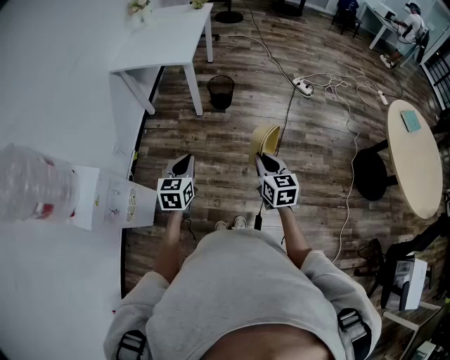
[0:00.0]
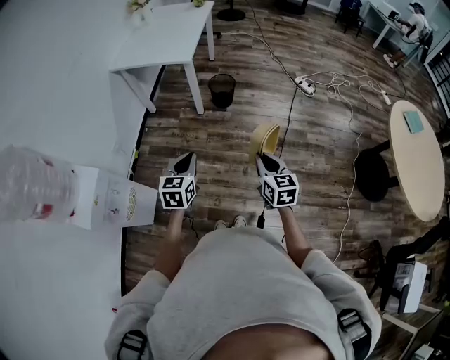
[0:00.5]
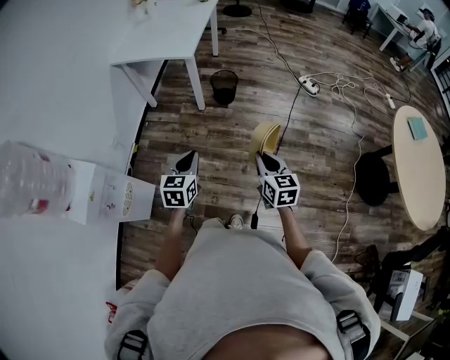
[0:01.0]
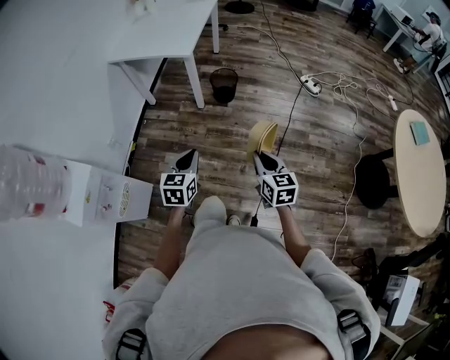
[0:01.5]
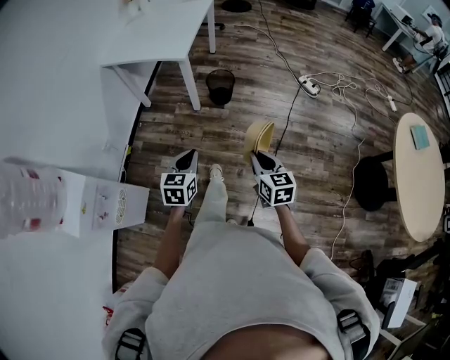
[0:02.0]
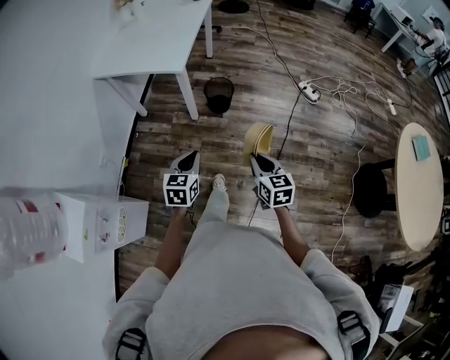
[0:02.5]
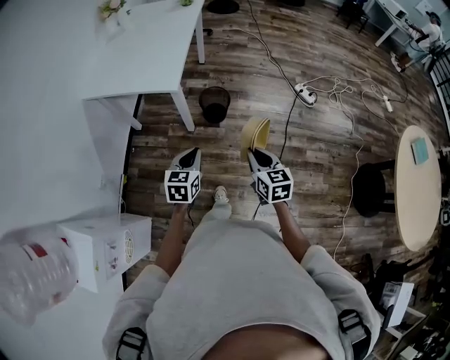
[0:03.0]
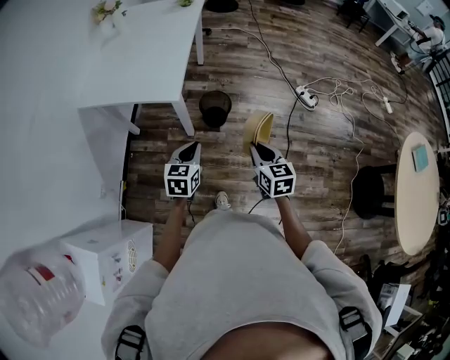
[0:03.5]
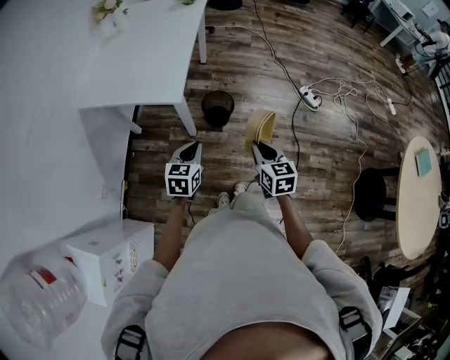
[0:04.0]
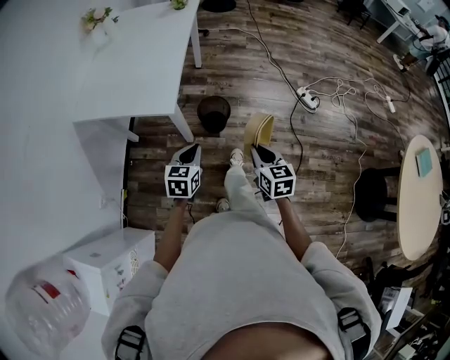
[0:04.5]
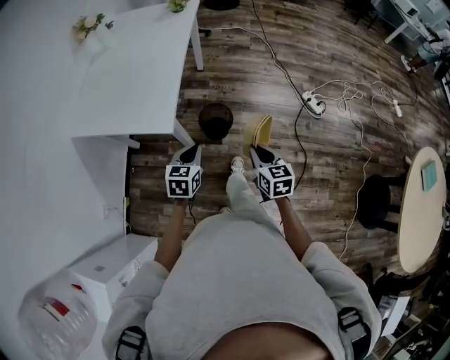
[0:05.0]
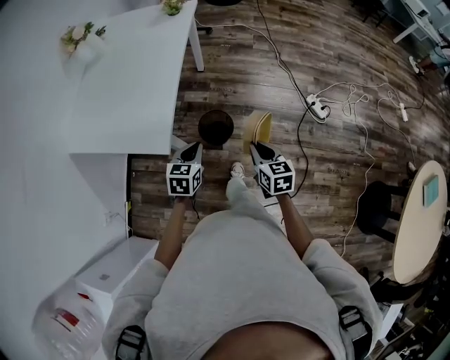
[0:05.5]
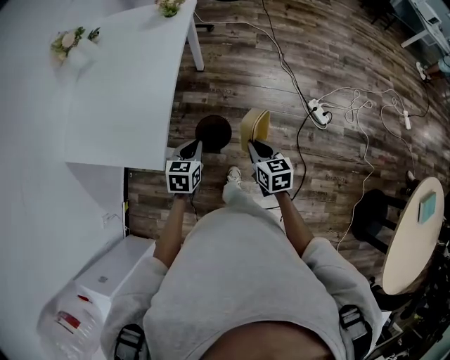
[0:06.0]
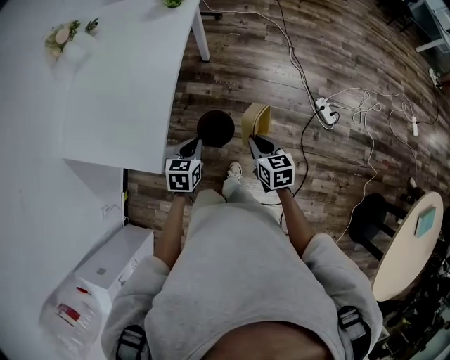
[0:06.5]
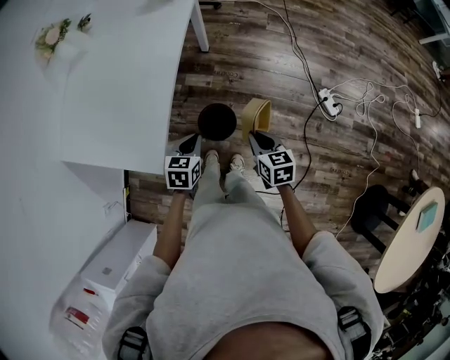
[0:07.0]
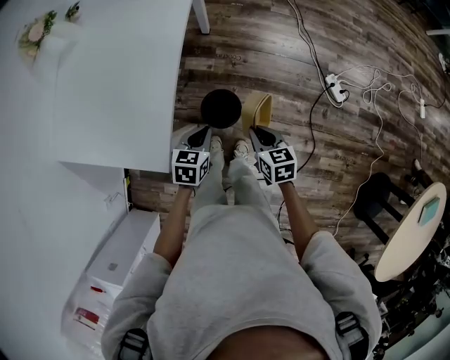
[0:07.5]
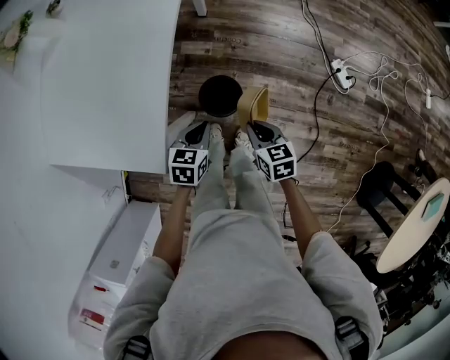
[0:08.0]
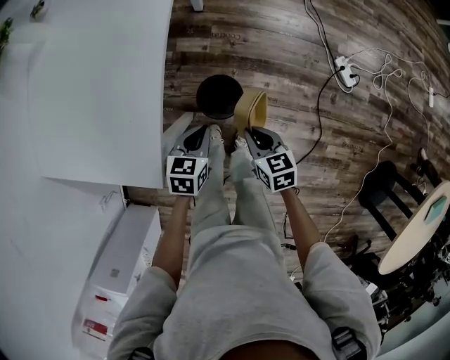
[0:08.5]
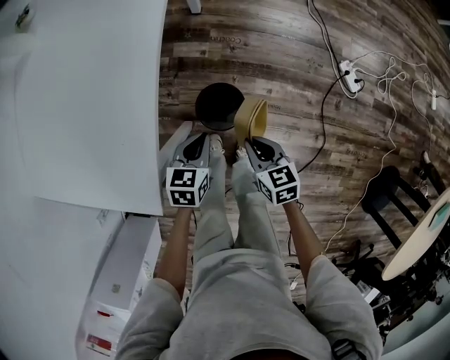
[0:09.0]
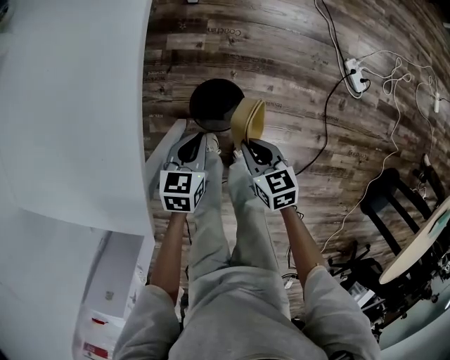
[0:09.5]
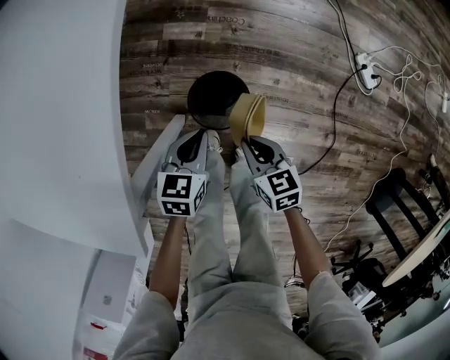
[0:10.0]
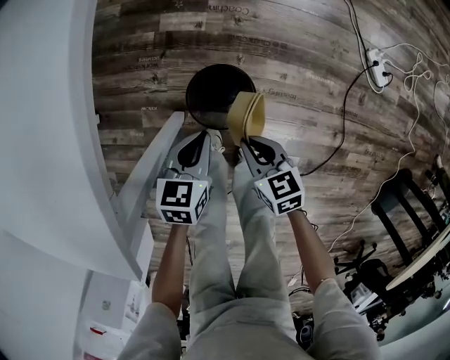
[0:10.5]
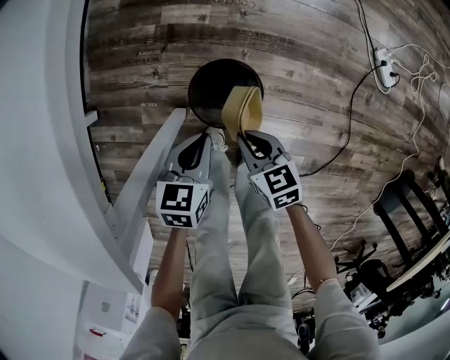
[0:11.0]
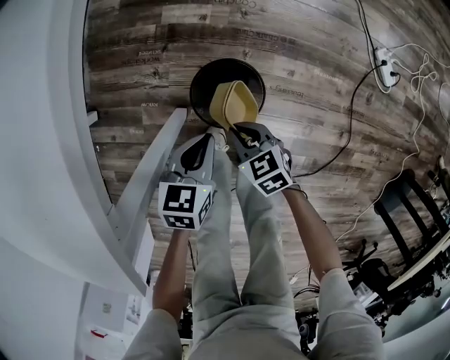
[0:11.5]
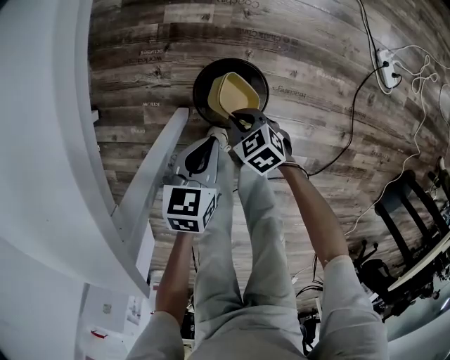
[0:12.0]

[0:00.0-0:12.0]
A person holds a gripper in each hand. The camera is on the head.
0:00.0 to 0:02.0: The left gripper travels forward and to the right by some 10 cm. Meanwhile the right gripper moves forward, about 10 cm.
0:02.0 to 0:04.0: The grippers both shift forward by about 35 cm.
0:04.0 to 0:06.0: Both grippers move forward, some 30 cm.
0:06.0 to 0:08.0: The right gripper goes some 15 cm downward, to the left and forward; the left gripper is displaced downward and forward by roughly 10 cm.
0:08.0 to 0:10.0: Both grippers travel together downward, approximately 20 cm.
0:10.0 to 0:12.0: The right gripper heads downward and to the left, covering some 20 cm, and changes its angle by roughly 30 degrees. The left gripper shifts approximately 5 cm downward.

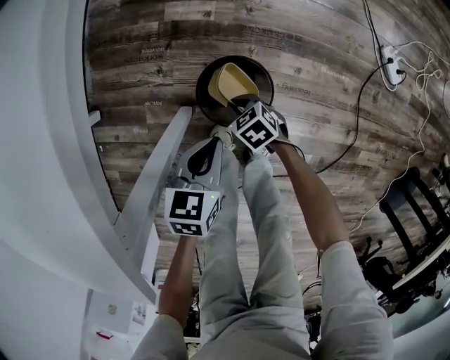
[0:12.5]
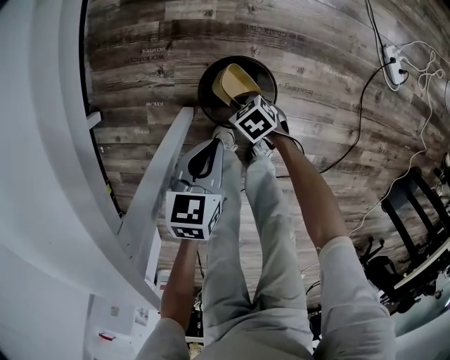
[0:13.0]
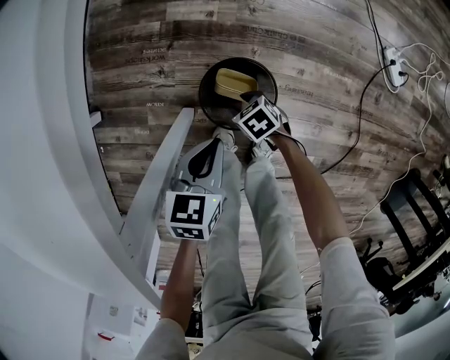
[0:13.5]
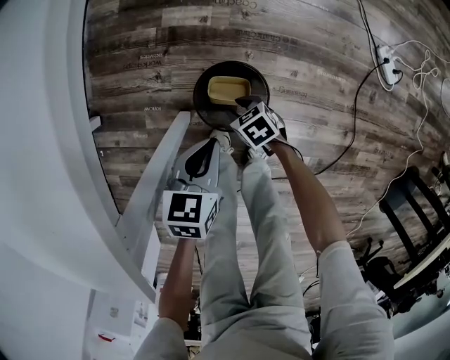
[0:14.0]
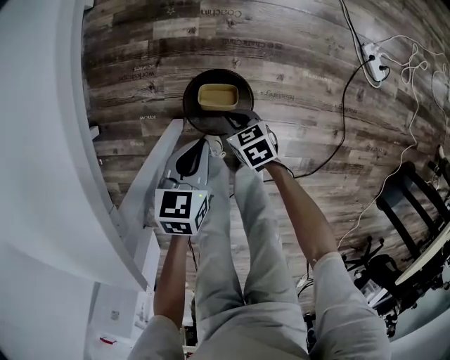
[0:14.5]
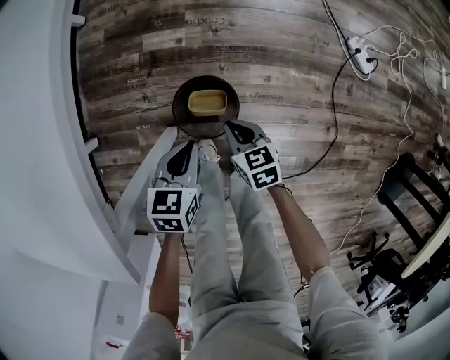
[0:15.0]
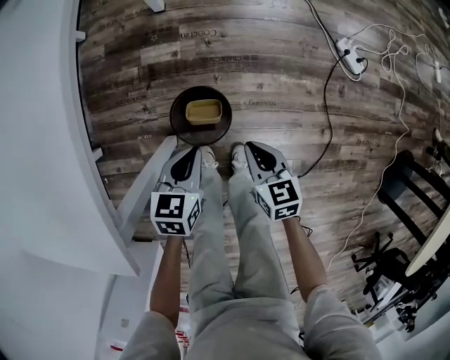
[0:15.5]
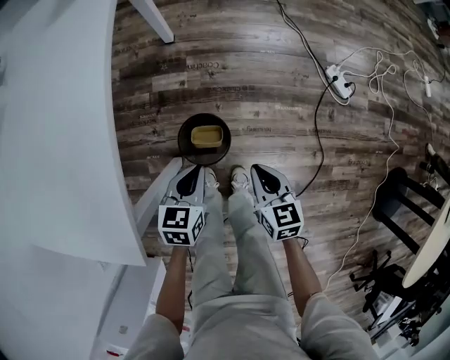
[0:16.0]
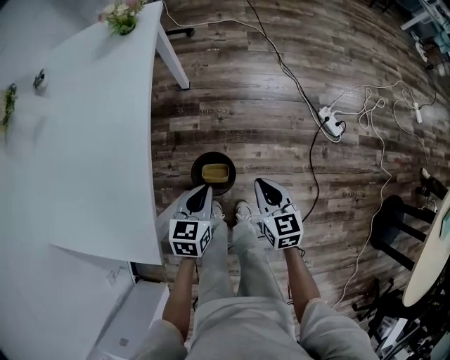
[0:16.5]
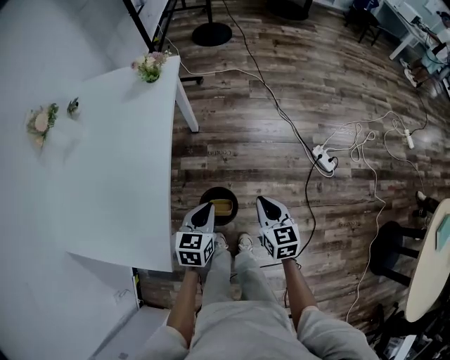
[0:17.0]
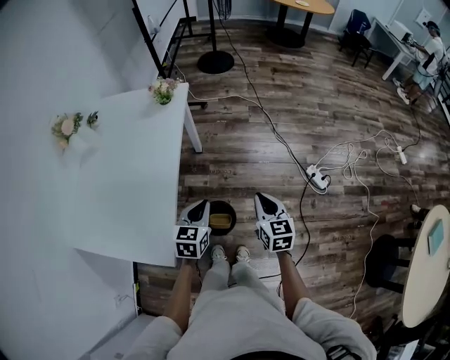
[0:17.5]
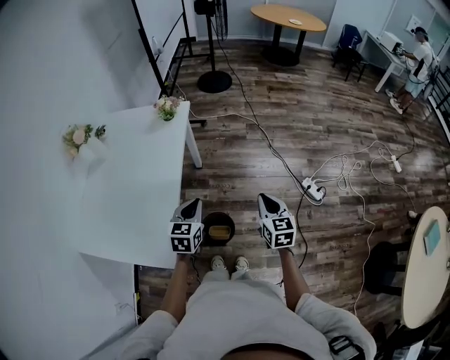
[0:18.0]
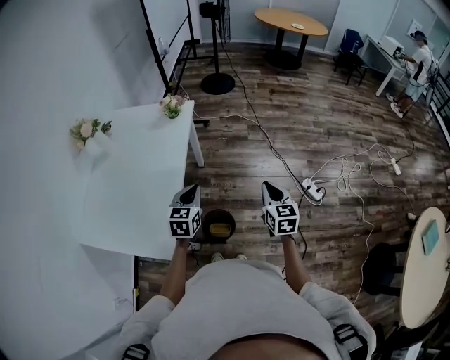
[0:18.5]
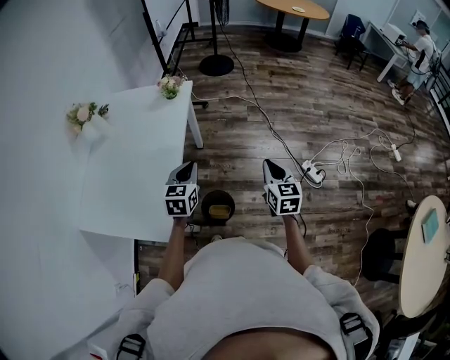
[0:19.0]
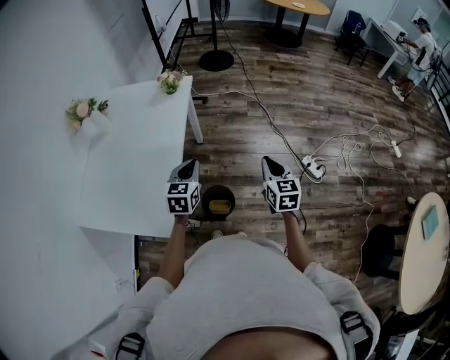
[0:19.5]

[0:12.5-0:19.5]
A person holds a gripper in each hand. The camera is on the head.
0:12.5 to 0:14.5: The right gripper travels upward by some 5 cm, changes its angle by about 20 degrees, and opens, then closes again.
0:14.5 to 0:16.0: The left gripper shifts some 10 cm upward and to the right. The right gripper is displaced upward and to the right by about 30 cm, and turns by roughly 30 degrees.
0:16.0 to 0:17.5: Both grippers move upward, some 30 cm.
0:17.5 to 0:19.5: Both grippers move upward, approximately 10 cm.

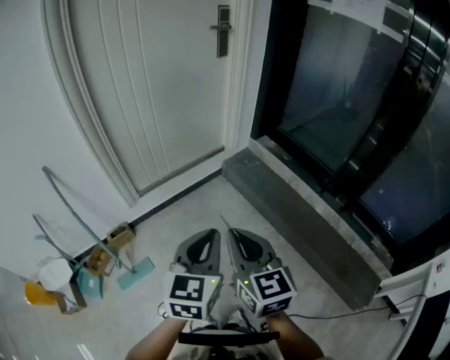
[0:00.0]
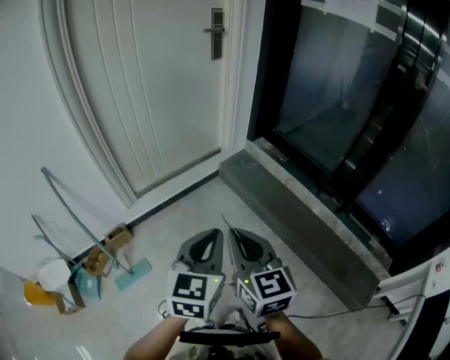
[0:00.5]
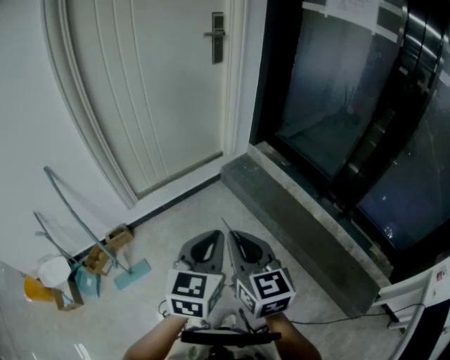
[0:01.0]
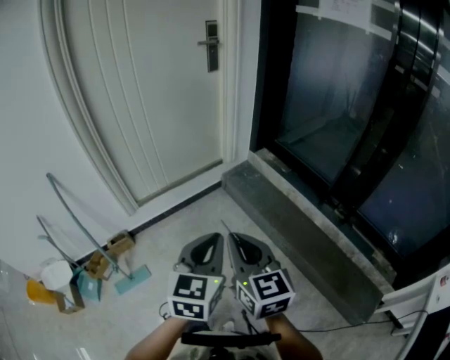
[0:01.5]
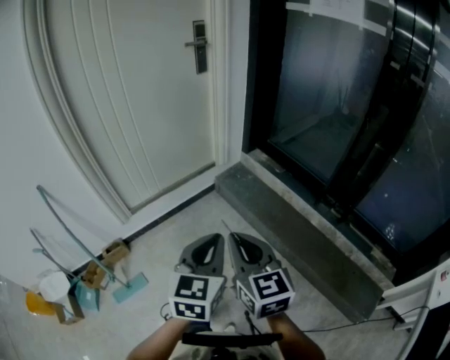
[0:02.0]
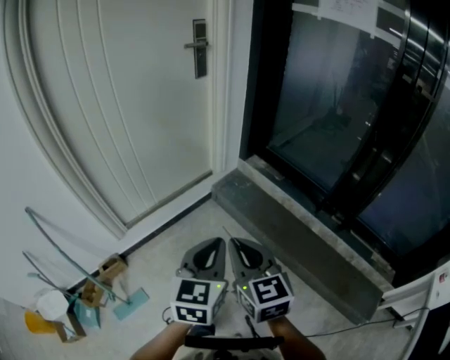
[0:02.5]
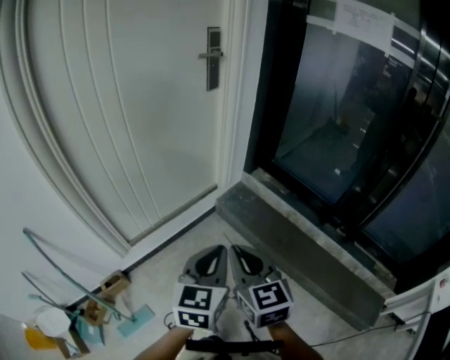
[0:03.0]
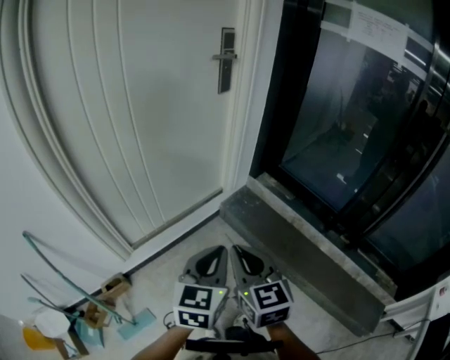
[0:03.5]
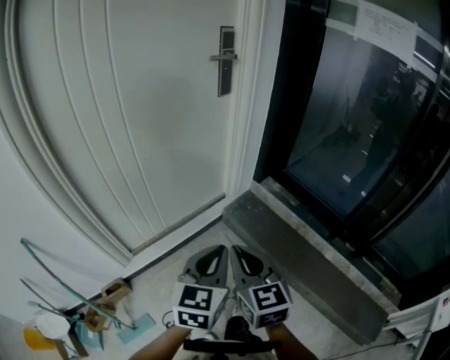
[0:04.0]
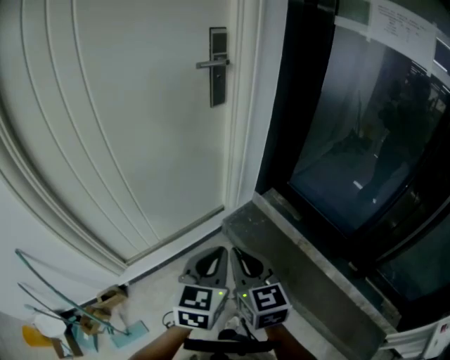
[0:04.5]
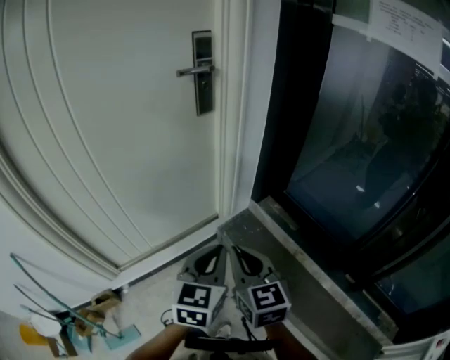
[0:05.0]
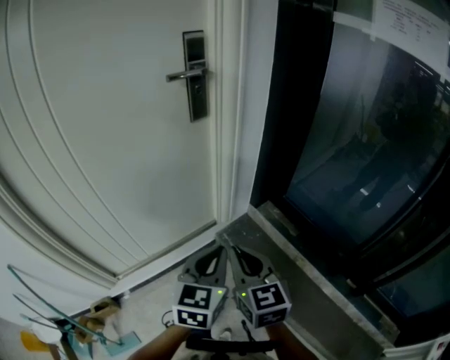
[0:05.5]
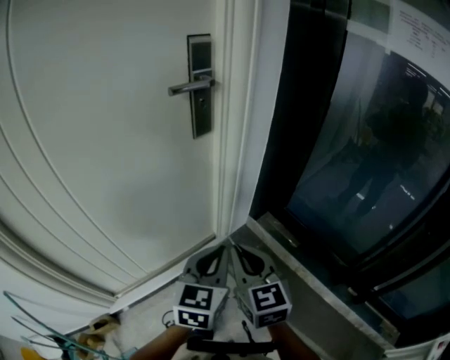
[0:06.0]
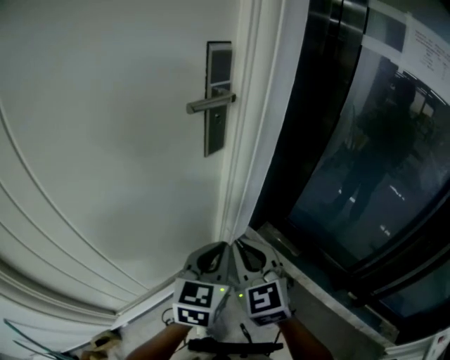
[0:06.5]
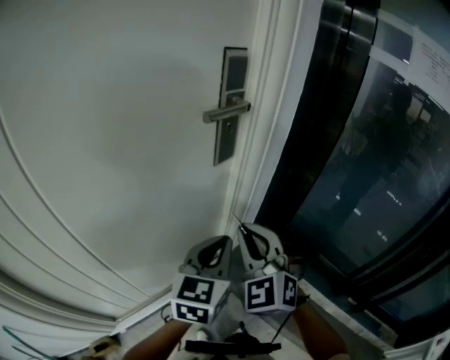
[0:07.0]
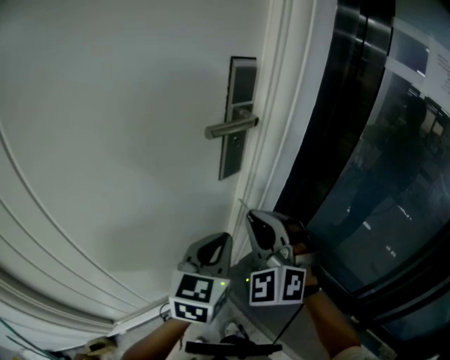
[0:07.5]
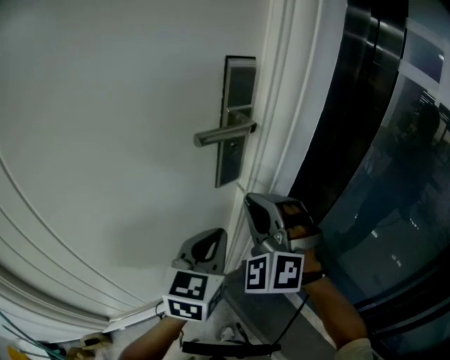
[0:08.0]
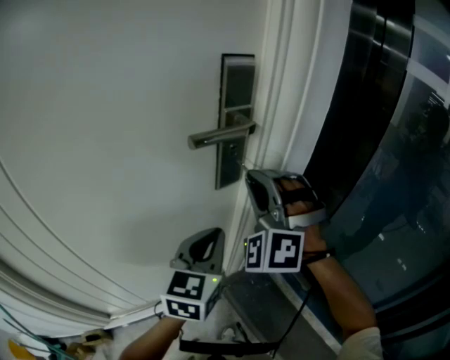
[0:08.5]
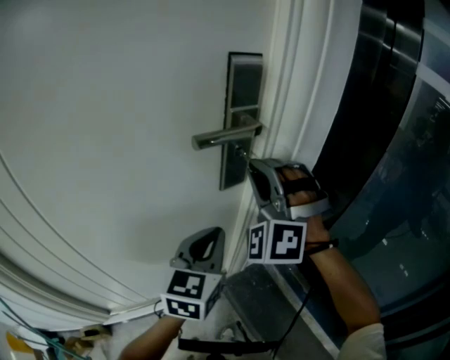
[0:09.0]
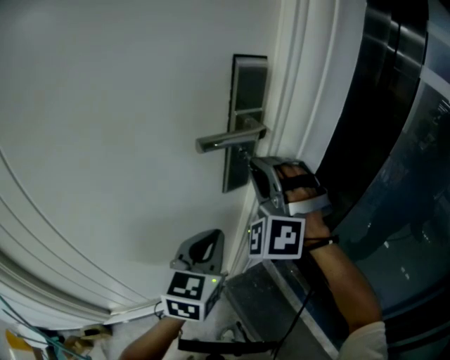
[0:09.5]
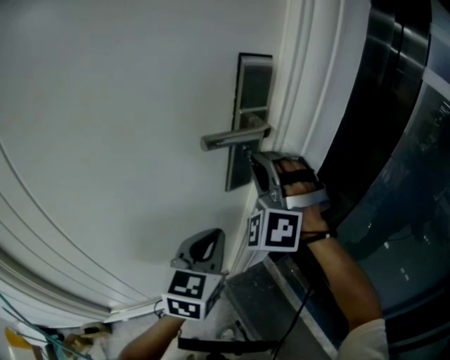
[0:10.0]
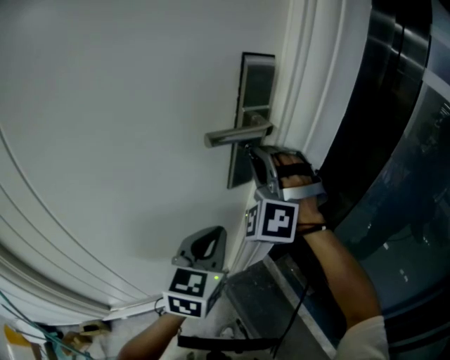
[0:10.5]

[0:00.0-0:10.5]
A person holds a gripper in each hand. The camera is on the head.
0:00.0 to 0:02.0: Both grippers move to the right, roughly 10 cm.
0:02.0 to 0:04.0: Both grippers move forward and to the left, roughly 30 cm.
0:04.0 to 0:06.5: Both grippers move forward, roughly 40 cm. The right gripper turns by roughly 20 degrees.
0:06.5 to 0:08.5: The right gripper moves forward and upward, roughly 25 cm, and rotates around the line of its fingers by approximately 60 degrees, counterclockwise from behind. The left gripper goes roughly 15 cm forward.
0:08.5 to 0:10.5: The right gripper moves forward, roughly 5 cm.
